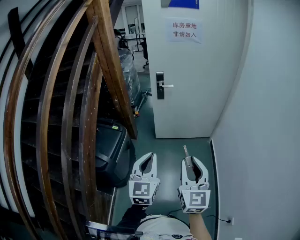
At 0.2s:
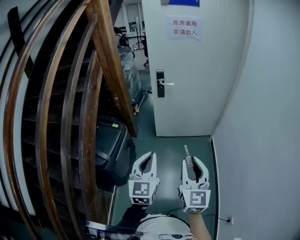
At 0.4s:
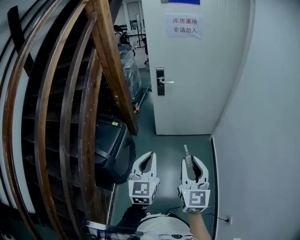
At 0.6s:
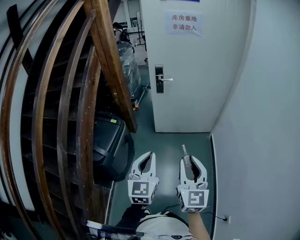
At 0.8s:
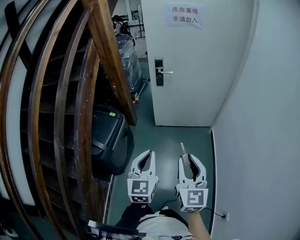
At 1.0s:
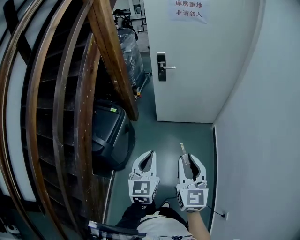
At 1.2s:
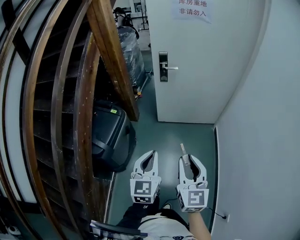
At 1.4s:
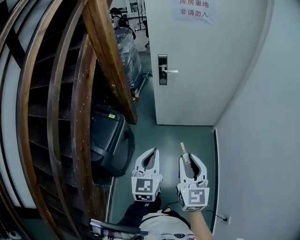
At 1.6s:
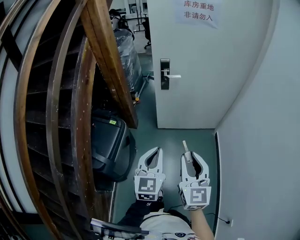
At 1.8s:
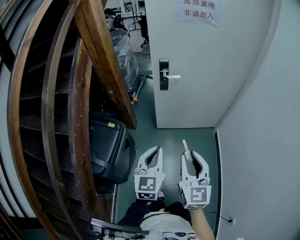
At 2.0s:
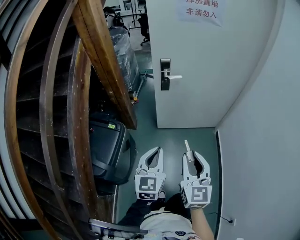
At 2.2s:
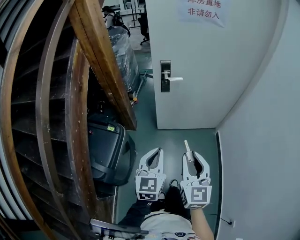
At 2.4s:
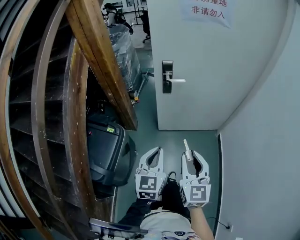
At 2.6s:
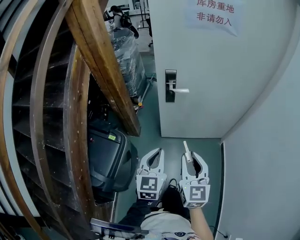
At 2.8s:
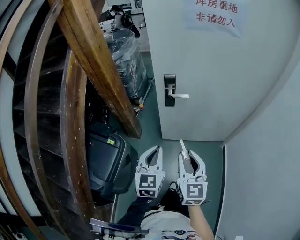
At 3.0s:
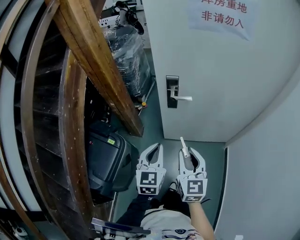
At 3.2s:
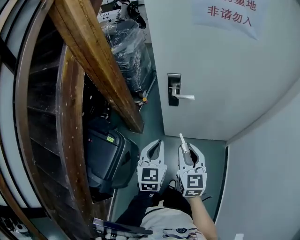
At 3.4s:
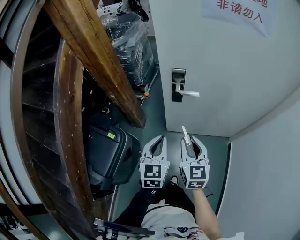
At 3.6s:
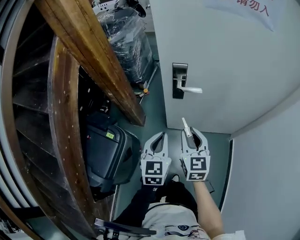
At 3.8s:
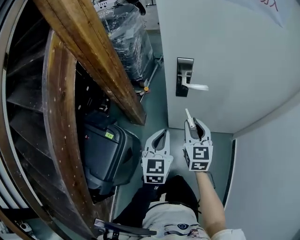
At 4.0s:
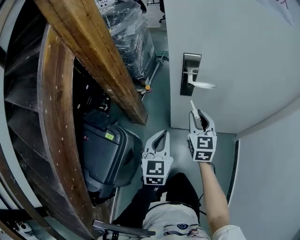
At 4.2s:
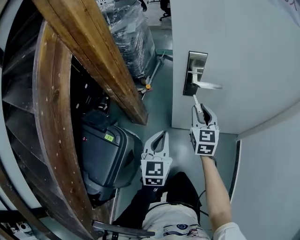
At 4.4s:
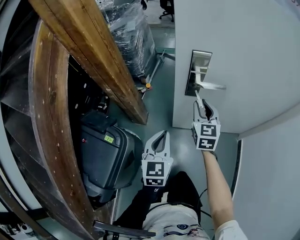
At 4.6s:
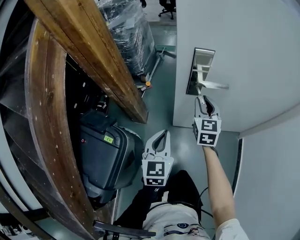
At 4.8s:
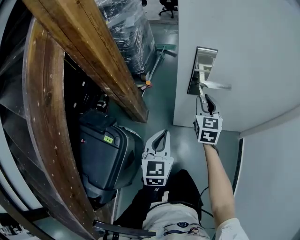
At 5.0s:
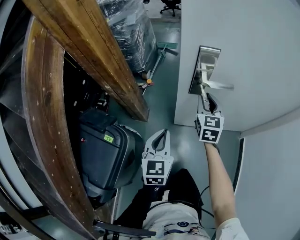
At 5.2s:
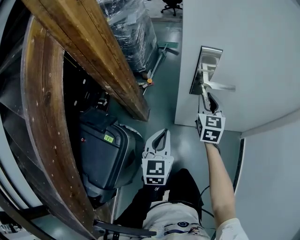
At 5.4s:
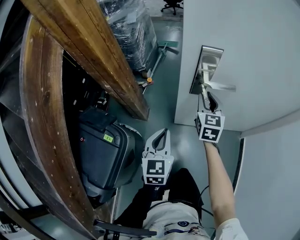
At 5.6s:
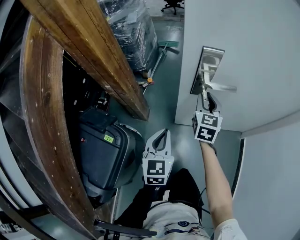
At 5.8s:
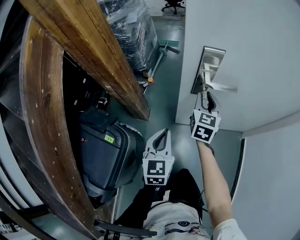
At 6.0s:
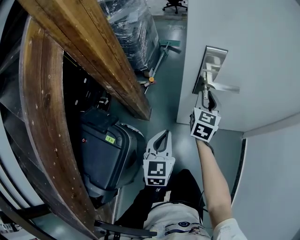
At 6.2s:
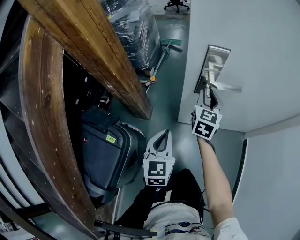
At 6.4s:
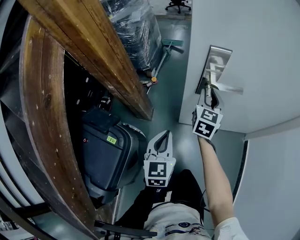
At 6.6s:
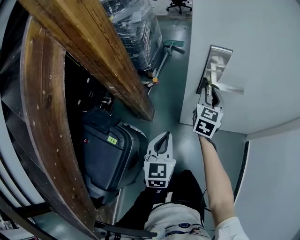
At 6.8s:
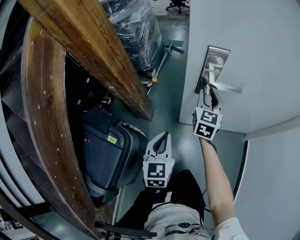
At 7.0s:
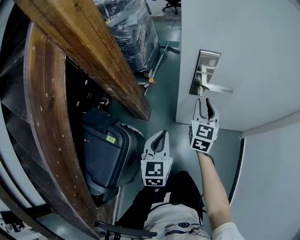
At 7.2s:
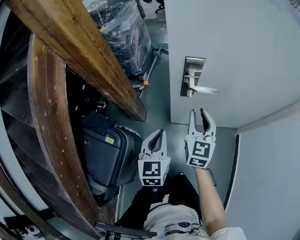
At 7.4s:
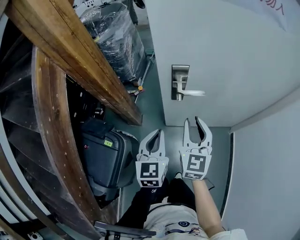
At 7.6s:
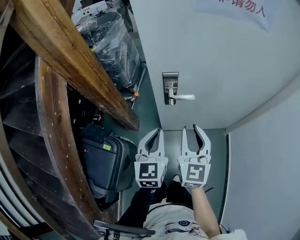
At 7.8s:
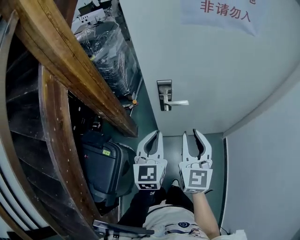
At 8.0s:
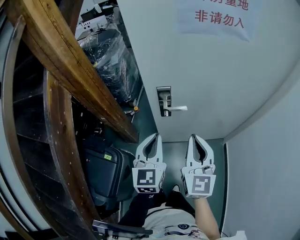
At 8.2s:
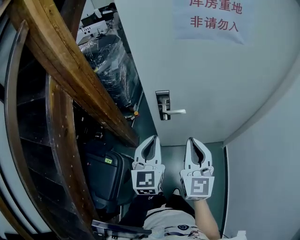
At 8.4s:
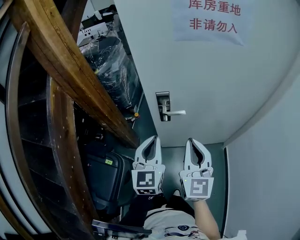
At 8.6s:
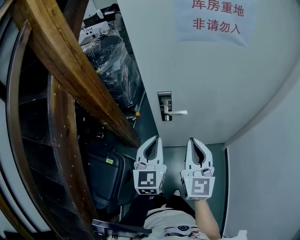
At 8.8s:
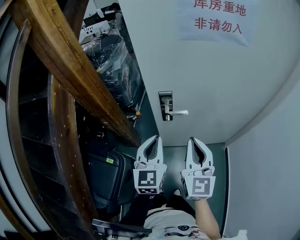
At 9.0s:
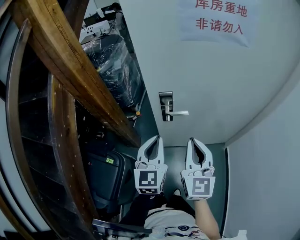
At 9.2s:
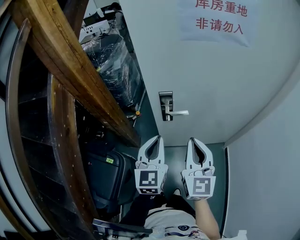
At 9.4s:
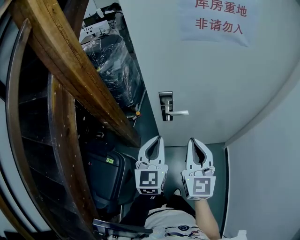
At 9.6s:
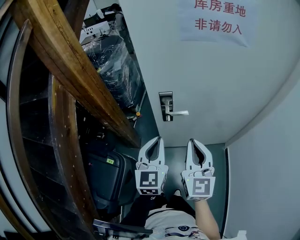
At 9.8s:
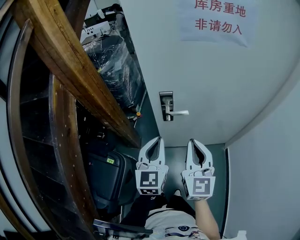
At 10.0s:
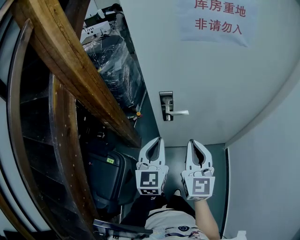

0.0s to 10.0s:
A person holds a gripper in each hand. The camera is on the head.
0.0s to 1.4s: The grippers both shift forward and downward by approximately 10 cm.
1.4s to 2.8s: Both grippers move forward, approximately 30 cm.
2.8s to 4.2s: The right gripper heads forward and downward, covering approximately 35 cm. Meanwhile the left gripper shifts approximately 25 cm downward and forward.
4.2s to 5.8s: The left gripper changes place by about 5 cm. Meanwhile the right gripper heads forward, covering about 10 cm.
5.8s to 7.2s: The right gripper moves backward and upward, roughly 10 cm, while the left gripper travels upward by roughly 5 cm.
7.2s to 8.6s: The left gripper is displaced upward by roughly 20 cm, while the right gripper shifts some 25 cm upward and backward, and closes.
8.6s to 10.0s: The grippers move only a little.

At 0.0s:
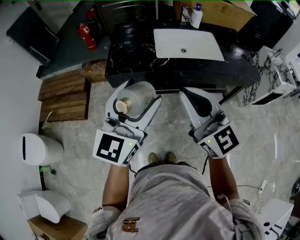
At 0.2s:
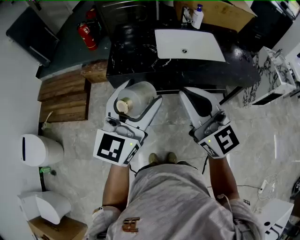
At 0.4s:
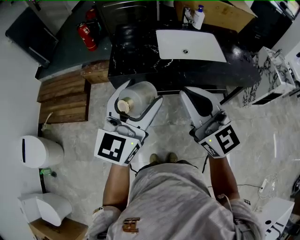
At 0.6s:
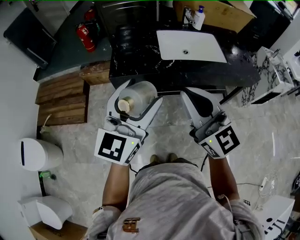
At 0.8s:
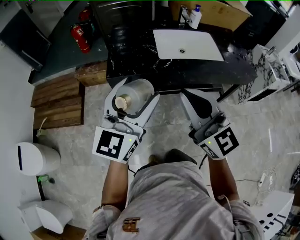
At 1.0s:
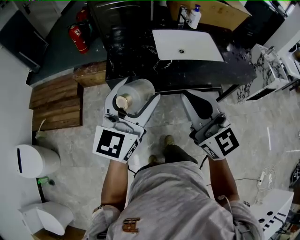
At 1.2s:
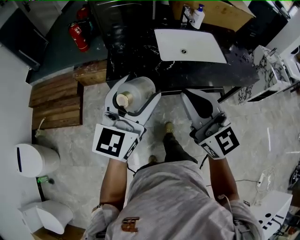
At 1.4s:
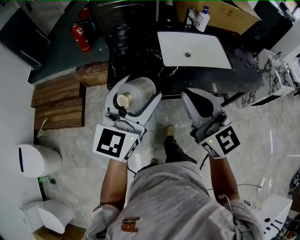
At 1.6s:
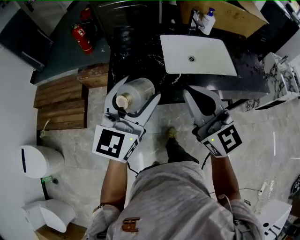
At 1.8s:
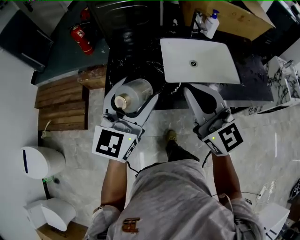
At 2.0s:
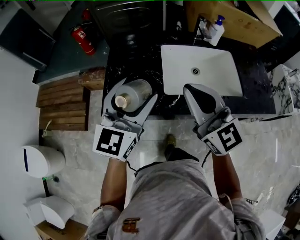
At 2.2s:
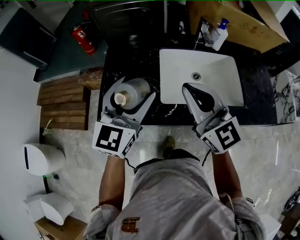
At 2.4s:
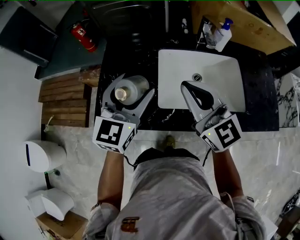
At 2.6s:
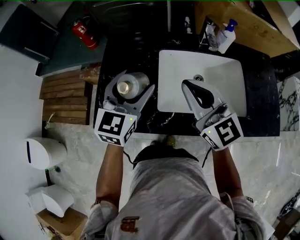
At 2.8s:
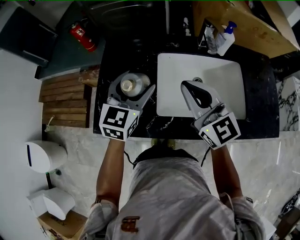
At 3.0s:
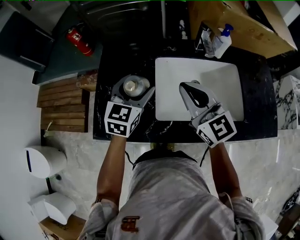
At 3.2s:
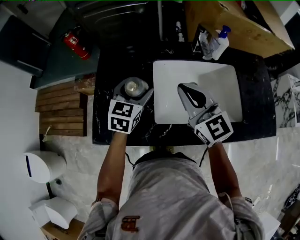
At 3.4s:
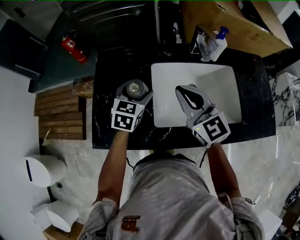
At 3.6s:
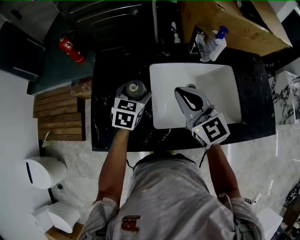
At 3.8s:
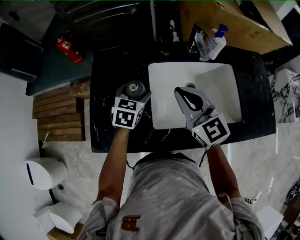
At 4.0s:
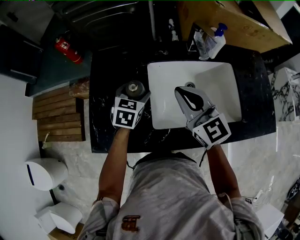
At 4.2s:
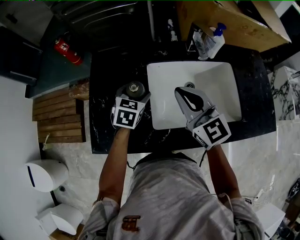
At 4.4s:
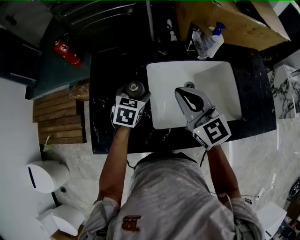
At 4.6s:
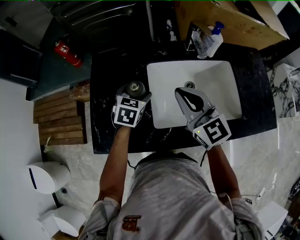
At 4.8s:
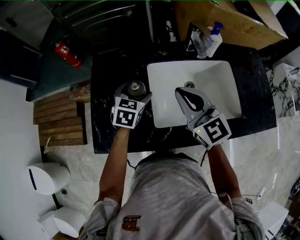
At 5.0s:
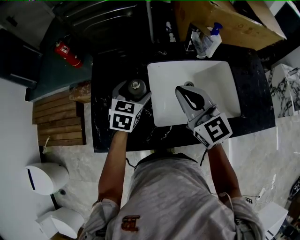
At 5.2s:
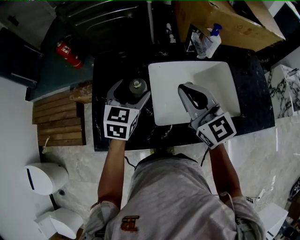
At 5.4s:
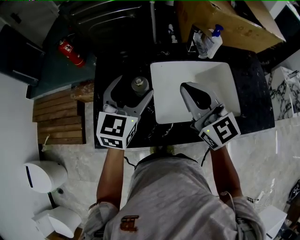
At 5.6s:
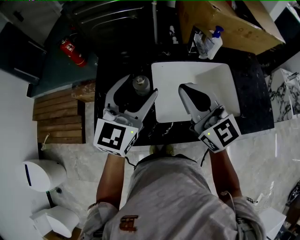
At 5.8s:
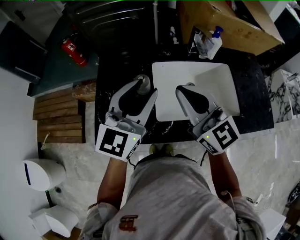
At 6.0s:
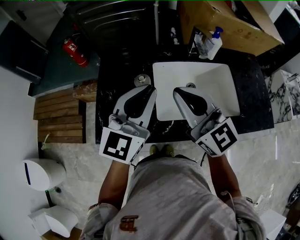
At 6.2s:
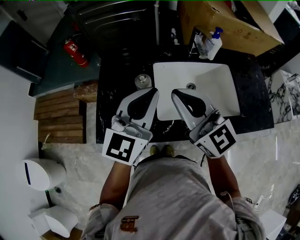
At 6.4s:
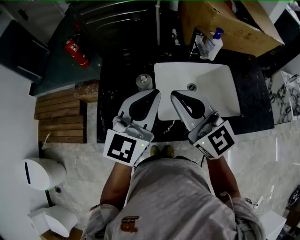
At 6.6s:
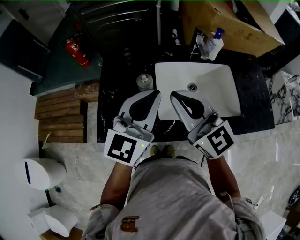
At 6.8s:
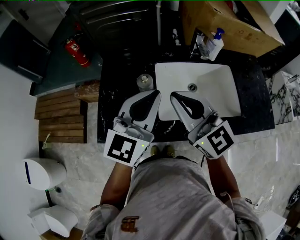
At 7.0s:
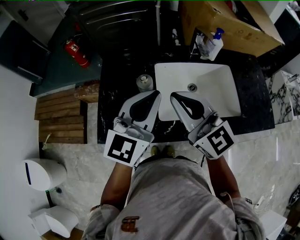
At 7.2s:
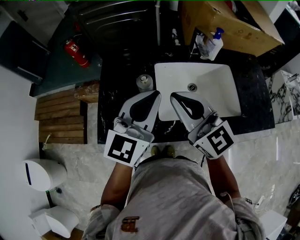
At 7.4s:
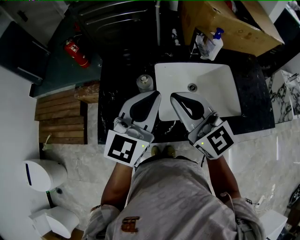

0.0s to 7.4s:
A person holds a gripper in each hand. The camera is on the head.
0.0s to 1.4s: The two grippers go some 10 cm forward and to the left.
1.4s to 3.0s: The left gripper travels forward and downward by some 40 cm, and turns by approximately 30 degrees, while the right gripper shifts roughly 35 cm forward.
3.0s to 4.4s: The left gripper is displaced downward by roughly 10 cm, and rotates approximately 20 degrees.
4.4s to 6.0s: The right gripper goes approximately 10 cm upward and backward. Meanwhile the left gripper goes approximately 25 cm upward and backward, angles its fingers upward, by roughly 40 degrees, and closes.
6.0s to 7.4s: The grippers stay close to where they were, moving slightly.

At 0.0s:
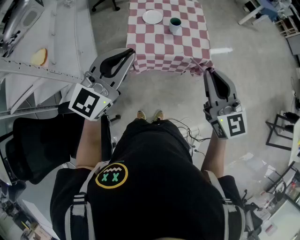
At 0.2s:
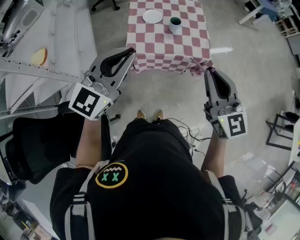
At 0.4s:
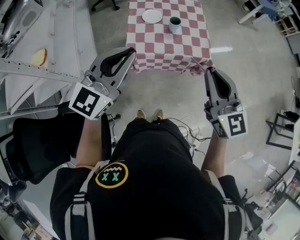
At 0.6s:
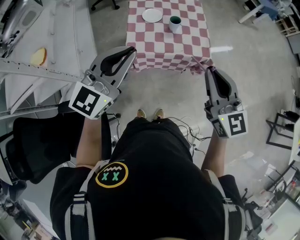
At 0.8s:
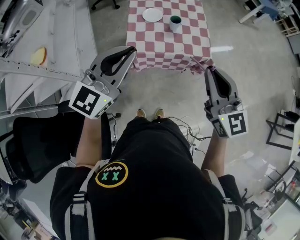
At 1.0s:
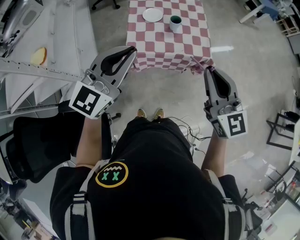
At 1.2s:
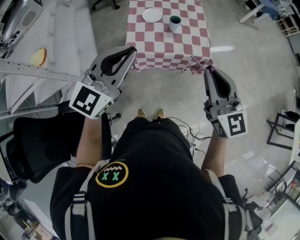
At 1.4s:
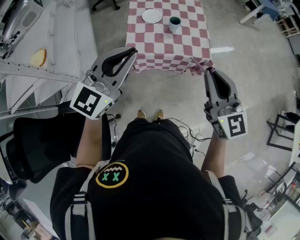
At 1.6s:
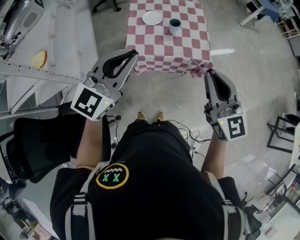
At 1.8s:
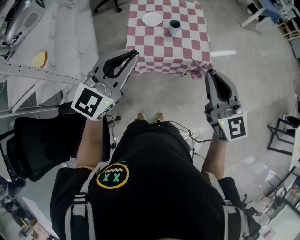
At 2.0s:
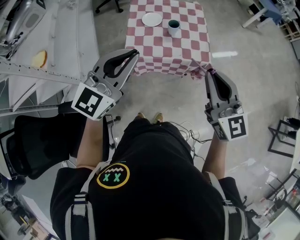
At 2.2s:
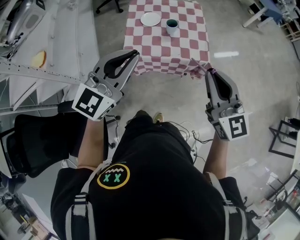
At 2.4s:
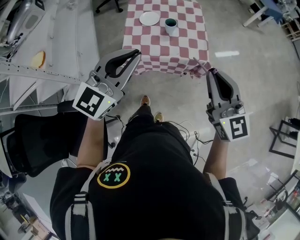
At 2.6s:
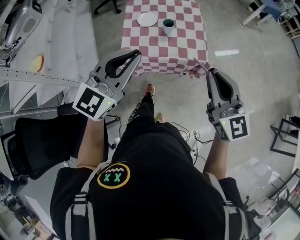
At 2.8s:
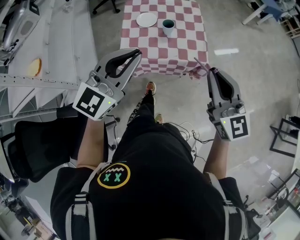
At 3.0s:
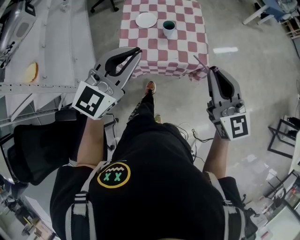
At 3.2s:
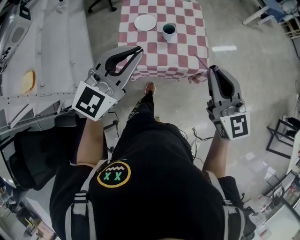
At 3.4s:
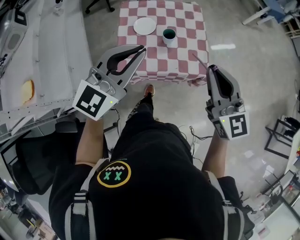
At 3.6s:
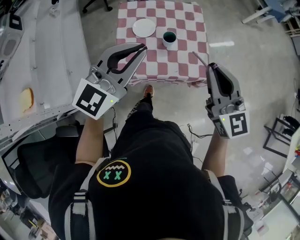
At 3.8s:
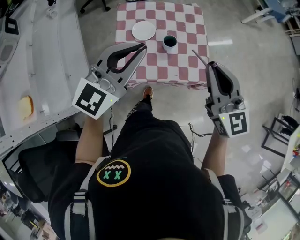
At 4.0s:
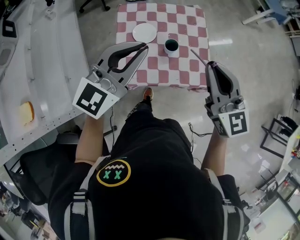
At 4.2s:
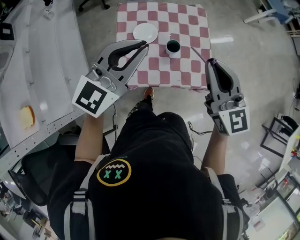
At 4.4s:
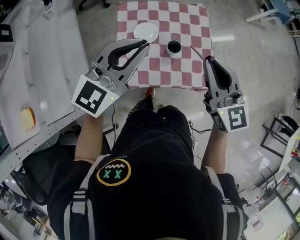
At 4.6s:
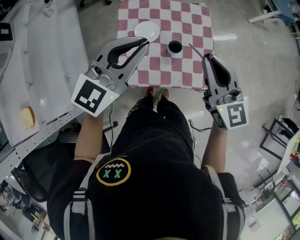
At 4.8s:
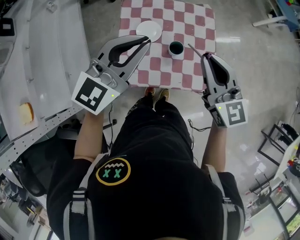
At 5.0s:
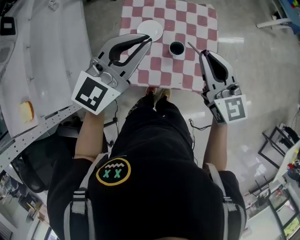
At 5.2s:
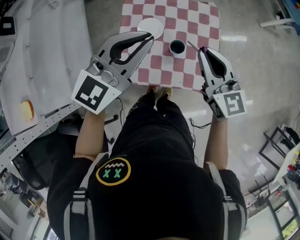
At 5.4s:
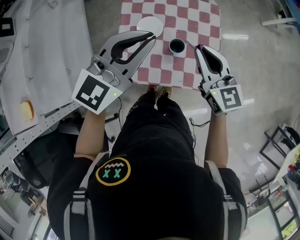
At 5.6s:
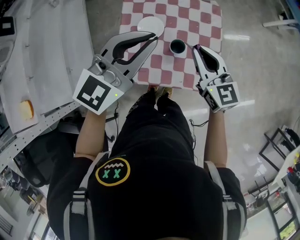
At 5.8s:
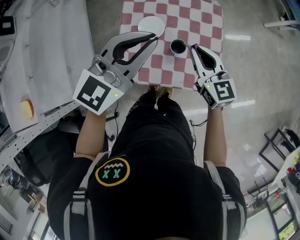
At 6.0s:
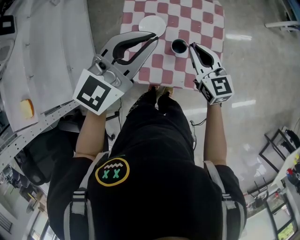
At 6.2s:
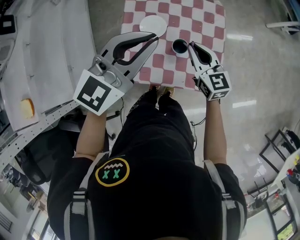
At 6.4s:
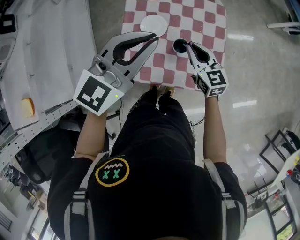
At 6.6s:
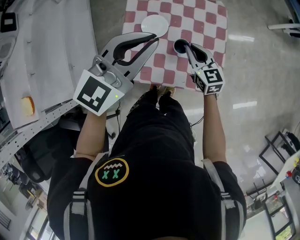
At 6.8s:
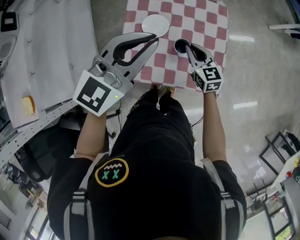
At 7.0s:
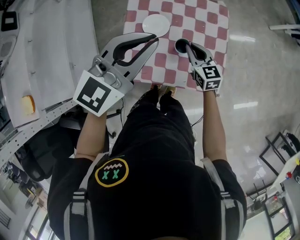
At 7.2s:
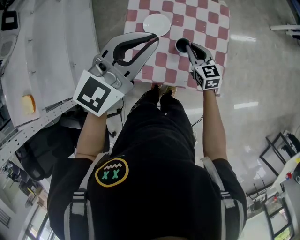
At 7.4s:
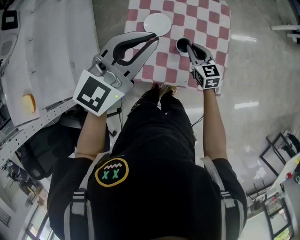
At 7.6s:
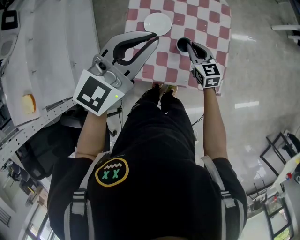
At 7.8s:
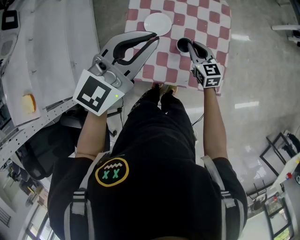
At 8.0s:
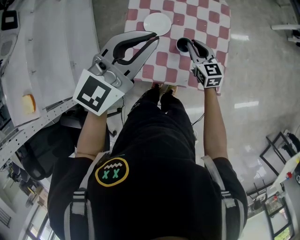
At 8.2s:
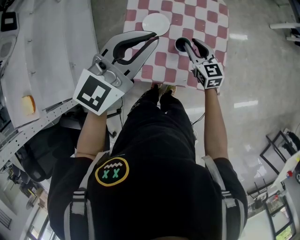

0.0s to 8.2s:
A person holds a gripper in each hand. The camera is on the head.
0.0s to 1.6s: The grippers stay close to where they were, moving slightly.
1.6s to 3.2s: The left gripper travels forward and to the right by roughly 15 cm. The right gripper travels forward by approximately 15 cm.
3.2s to 5.0s: Both grippers move forward, roughly 25 cm.
5.0s to 6.6s: The right gripper travels downward by about 20 cm.
6.6s to 8.2s: The right gripper opens up.
